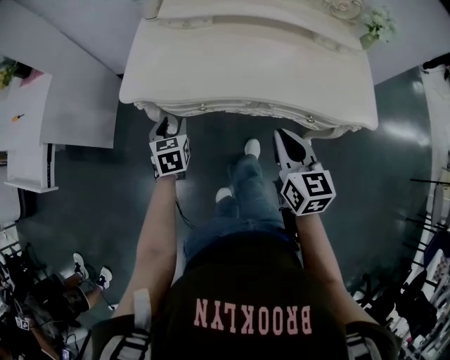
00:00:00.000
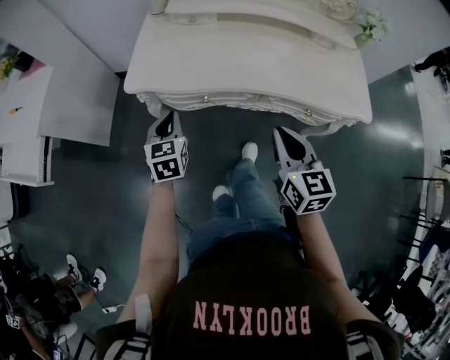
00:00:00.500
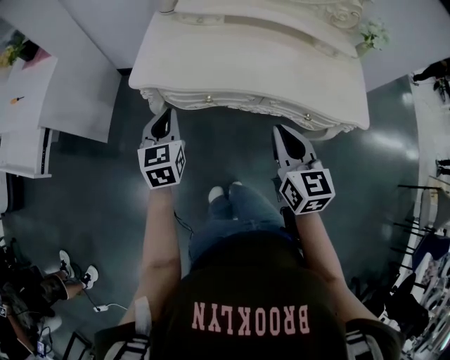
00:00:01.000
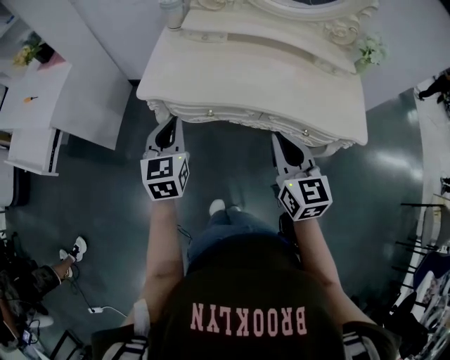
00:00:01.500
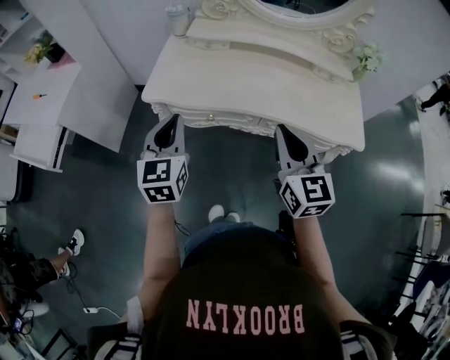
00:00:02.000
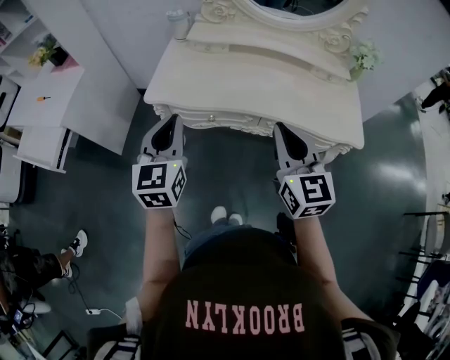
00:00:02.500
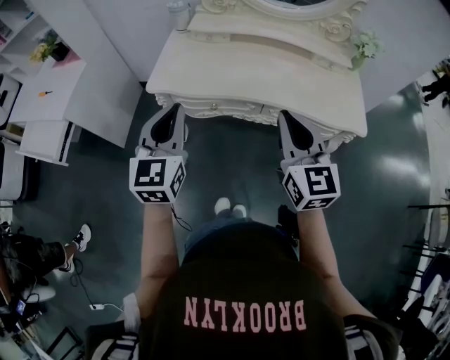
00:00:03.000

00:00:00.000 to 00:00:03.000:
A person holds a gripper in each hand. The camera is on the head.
00:00:00.000 to 00:00:01.500: The left gripper shifts approximately 15 cm upward, swivels about 20 degrees, and closes, while the right gripper moves upward, approximately 5 cm.
00:00:01.500 to 00:00:03.000: The right gripper heads upward, covering some 10 cm; the left gripper travels upward and backward by roughly 15 cm.

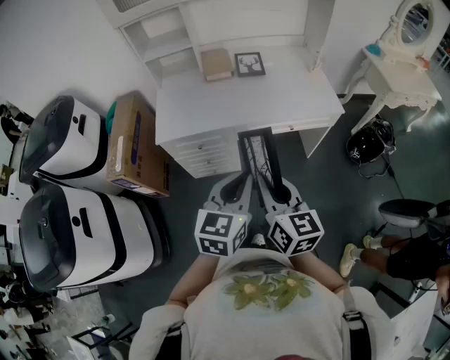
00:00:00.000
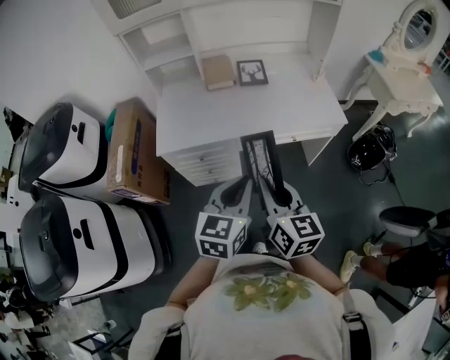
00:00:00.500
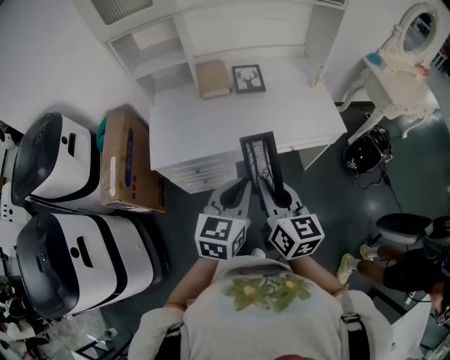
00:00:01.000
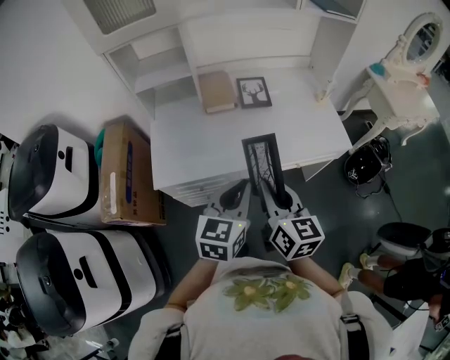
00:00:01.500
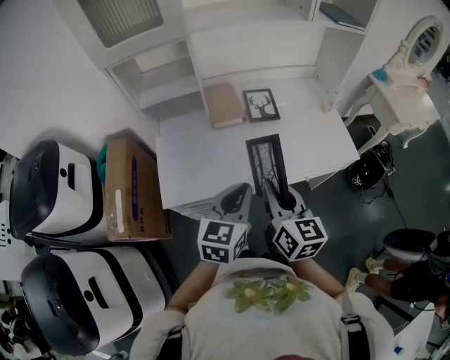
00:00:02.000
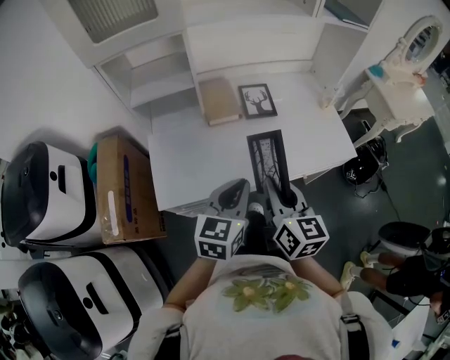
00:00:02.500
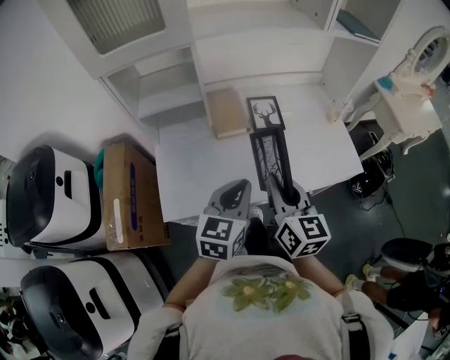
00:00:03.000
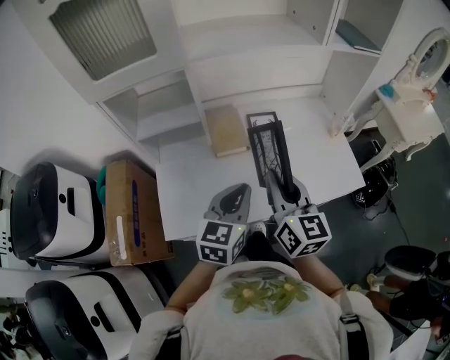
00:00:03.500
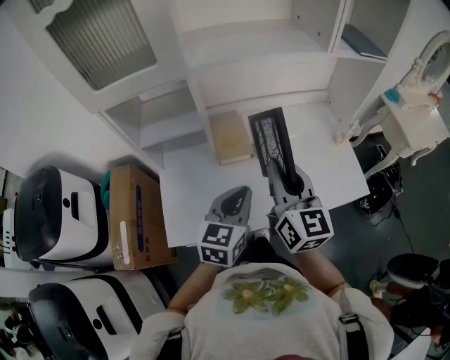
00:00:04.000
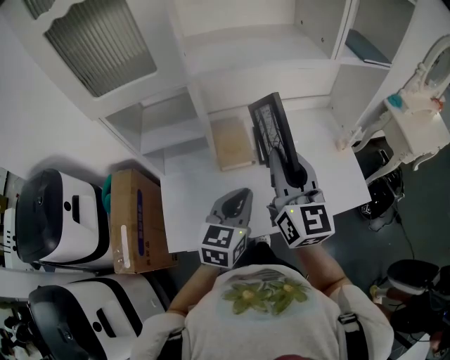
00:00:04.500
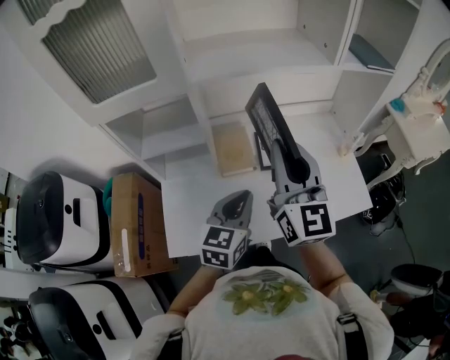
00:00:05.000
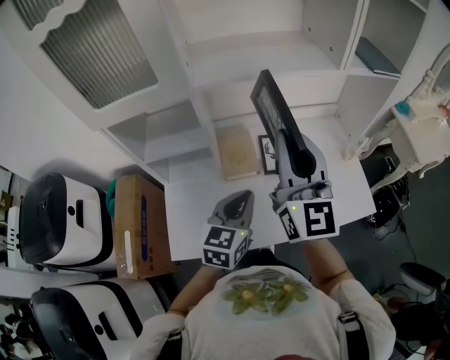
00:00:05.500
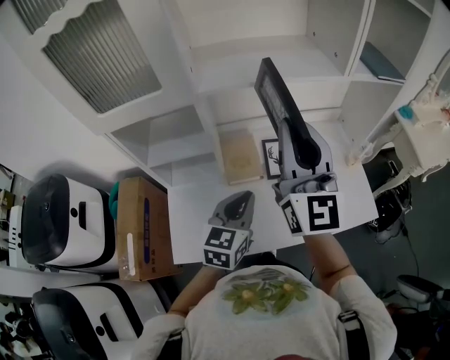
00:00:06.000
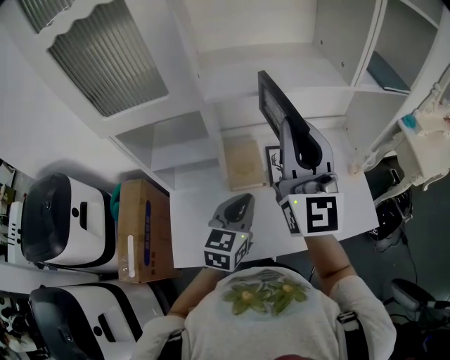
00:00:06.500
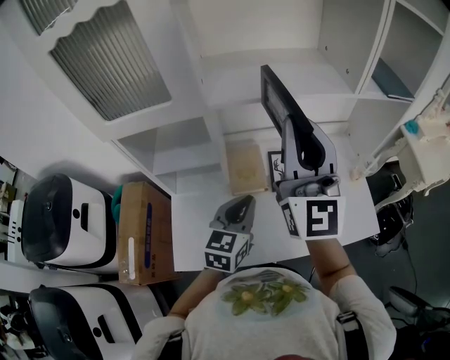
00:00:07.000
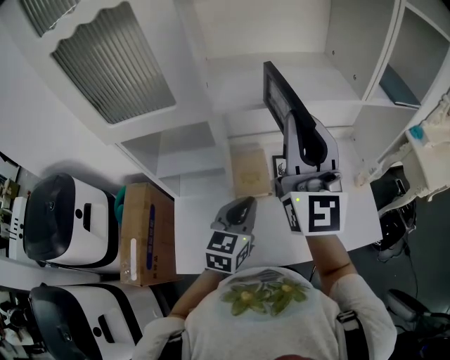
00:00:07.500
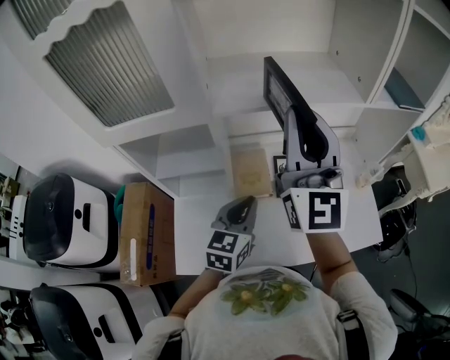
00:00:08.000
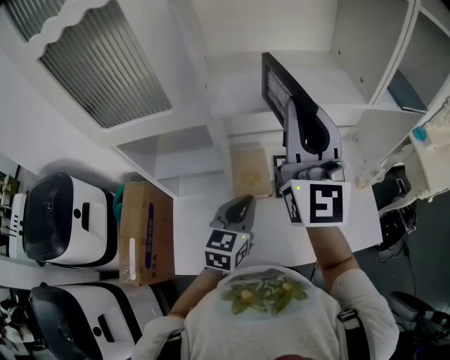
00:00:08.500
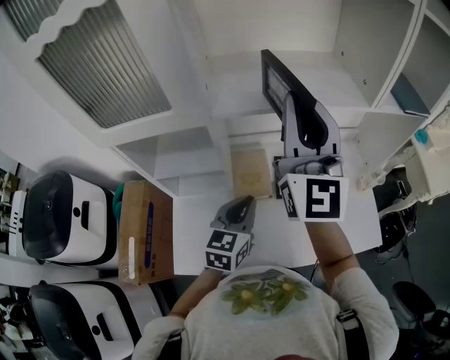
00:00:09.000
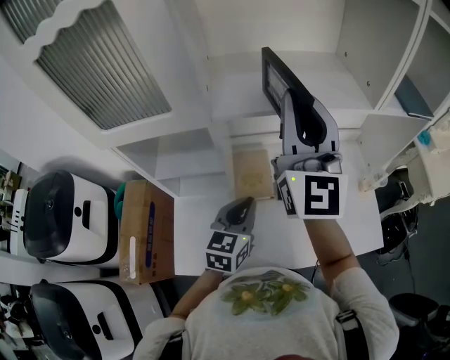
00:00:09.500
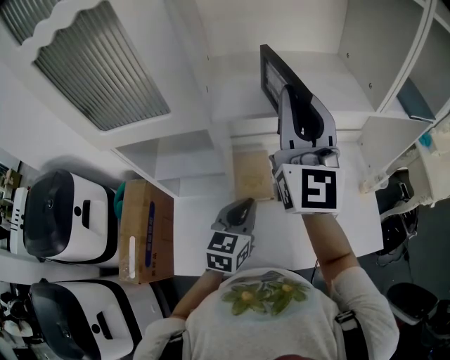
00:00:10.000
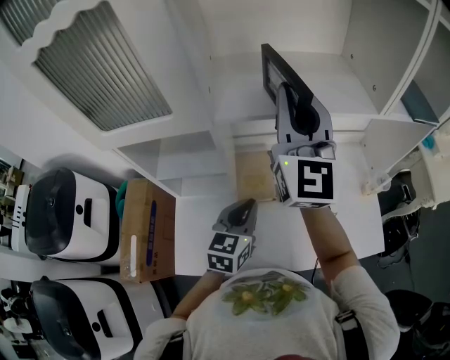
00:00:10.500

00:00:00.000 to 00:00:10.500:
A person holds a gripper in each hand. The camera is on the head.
00:00:00.000 to 00:00:02.000: The left gripper travels forward and to the left by roughly 25 cm. The right gripper heads forward, covering approximately 25 cm.
00:00:02.000 to 00:00:04.000: The right gripper shifts about 20 cm forward and upward, while the left gripper heads forward, covering about 15 cm.
00:00:04.000 to 00:00:06.500: The right gripper shifts roughly 20 cm upward and forward, and swivels about 30 degrees, while the left gripper shifts roughly 10 cm forward.
00:00:06.500 to 00:00:08.500: The right gripper goes roughly 5 cm forward, while the left gripper moves approximately 5 cm.
00:00:08.500 to 00:00:10.500: The right gripper shifts roughly 5 cm forward.

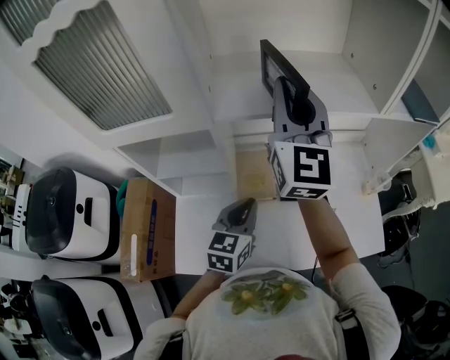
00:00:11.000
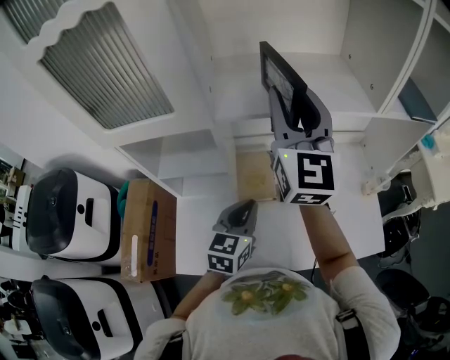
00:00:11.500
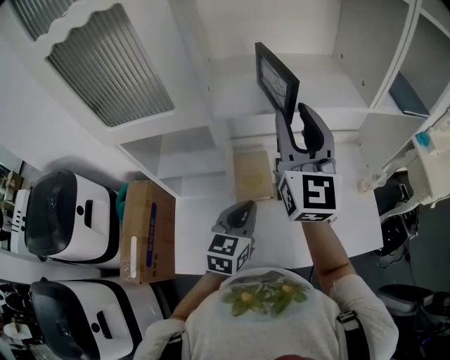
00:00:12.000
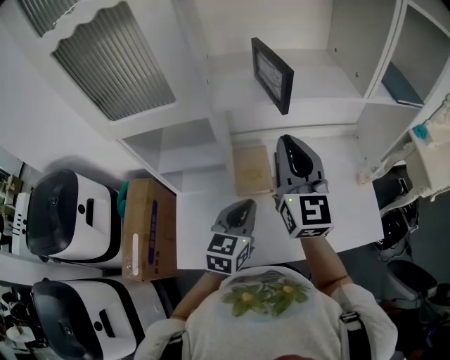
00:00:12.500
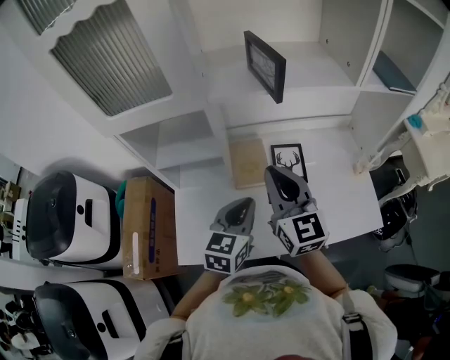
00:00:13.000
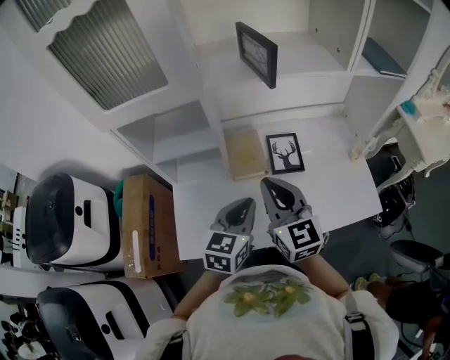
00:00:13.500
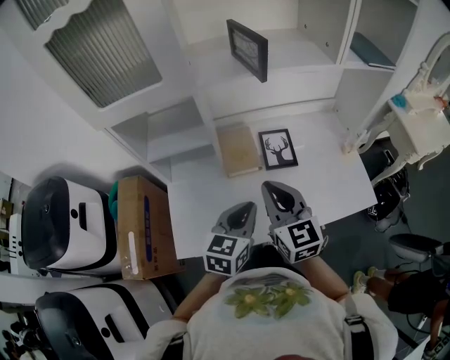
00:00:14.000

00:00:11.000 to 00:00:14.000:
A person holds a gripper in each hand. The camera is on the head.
00:00:11.000 to 00:00:12.500: The left gripper shifts some 5 cm backward. Meanwhile the right gripper goes about 15 cm backward and downward, and opens, then closes once more.
00:00:12.500 to 00:00:14.000: The left gripper shifts about 10 cm backward. The right gripper travels backward and downward by roughly 20 cm.

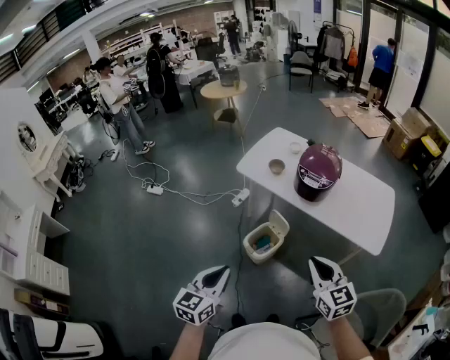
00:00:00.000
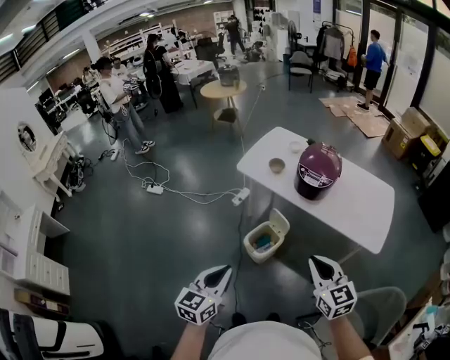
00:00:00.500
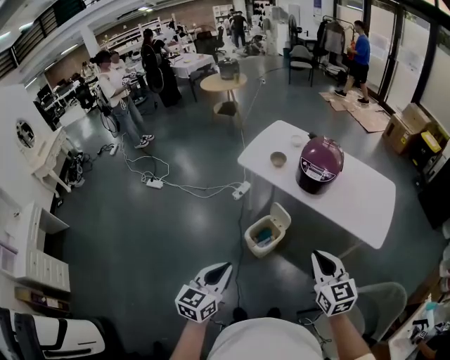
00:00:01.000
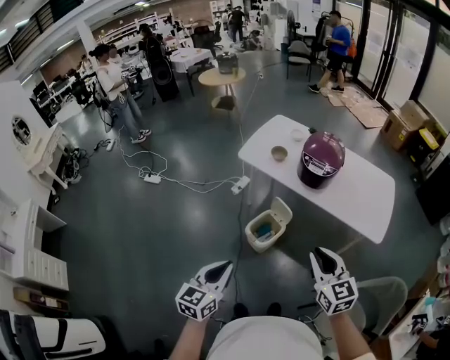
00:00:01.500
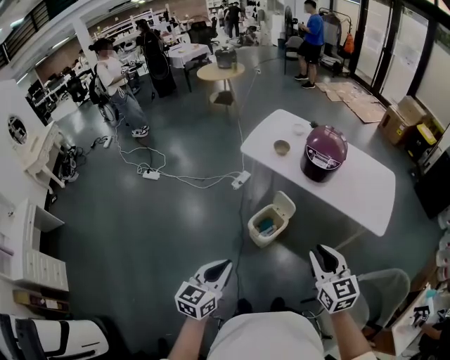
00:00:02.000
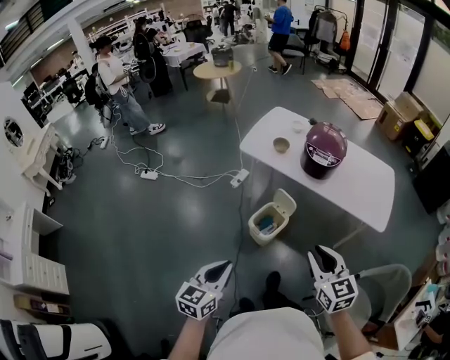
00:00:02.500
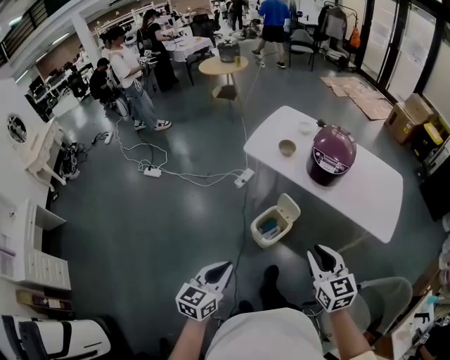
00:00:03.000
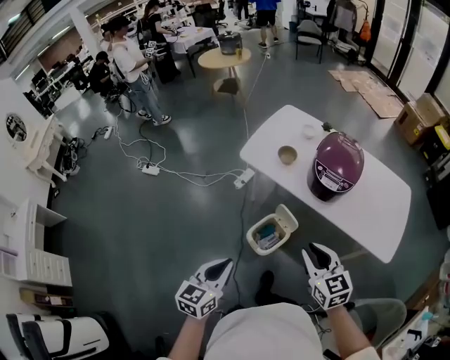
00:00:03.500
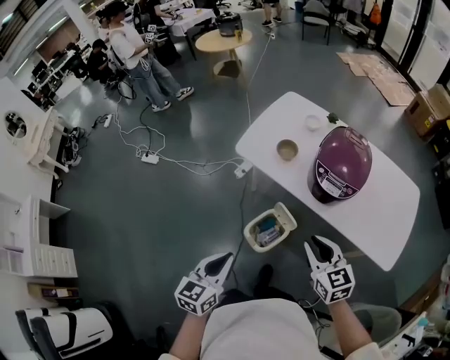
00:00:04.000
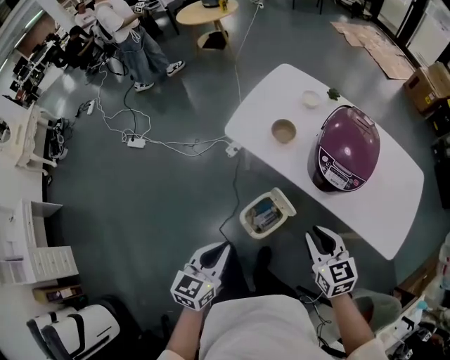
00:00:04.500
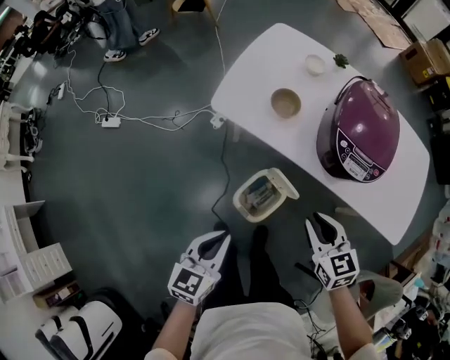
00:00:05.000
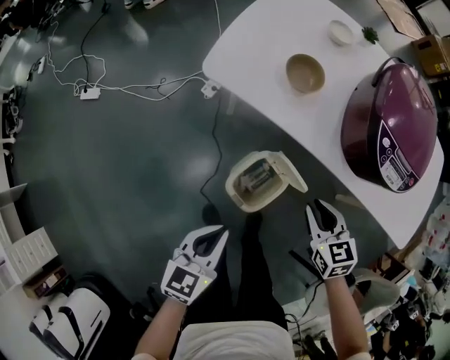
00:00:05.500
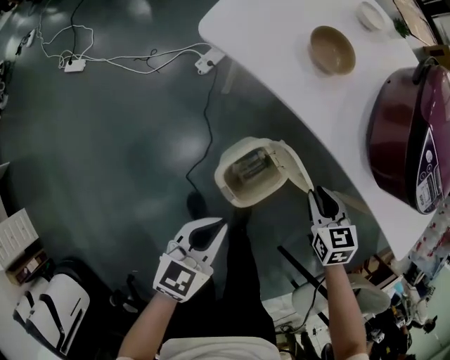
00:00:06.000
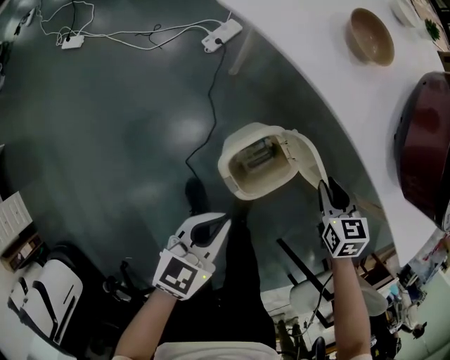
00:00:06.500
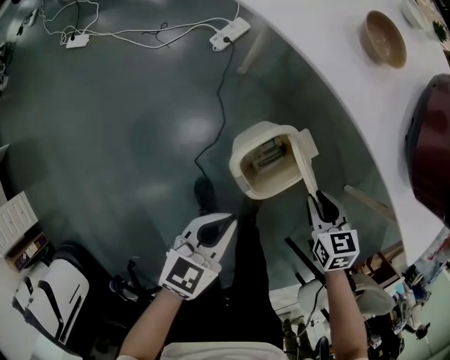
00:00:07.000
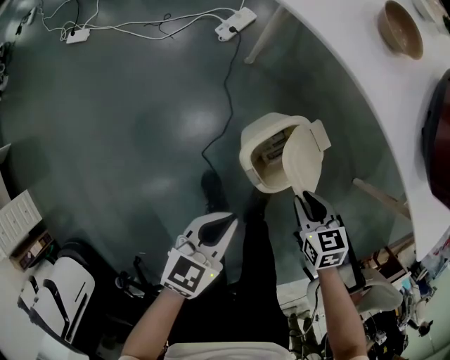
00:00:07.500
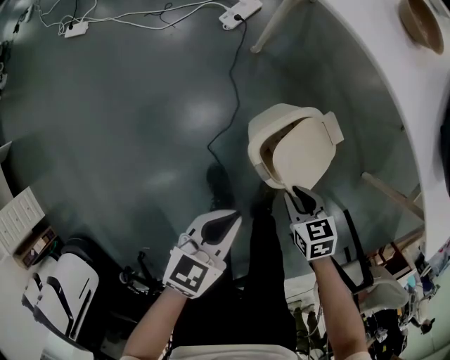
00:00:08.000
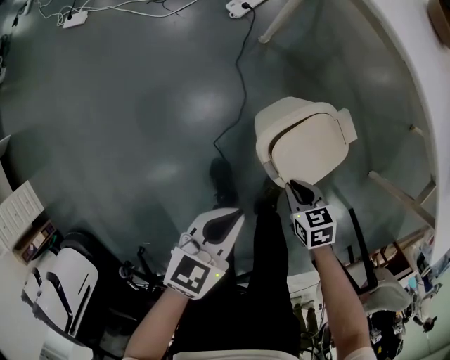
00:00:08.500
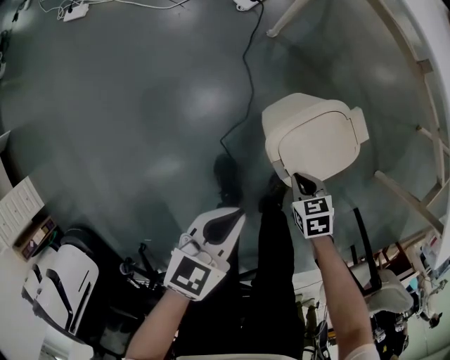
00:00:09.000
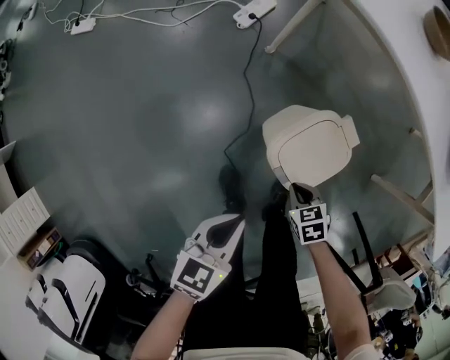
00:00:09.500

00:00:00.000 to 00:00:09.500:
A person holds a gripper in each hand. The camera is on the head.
00:00:00.000 to 00:00:02.000: The grippers both shift to the left by some 5 cm. The right gripper opens up.
00:00:02.000 to 00:00:04.000: The two grippers go about 25 cm forward.
00:00:04.000 to 00:00:05.500: The two grippers go roughly 30 cm downward and forward. The right gripper turns by some 20 degrees.
00:00:05.500 to 00:00:07.500: Both grippers travel together downward, roughly 20 cm.
00:00:07.500 to 00:00:09.500: The left gripper travels to the left and downward by about 10 cm. Meanwhile the right gripper is displaced downward and to the left by some 15 cm, and closes up.
